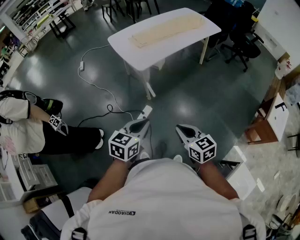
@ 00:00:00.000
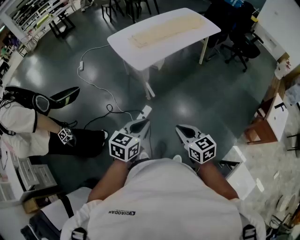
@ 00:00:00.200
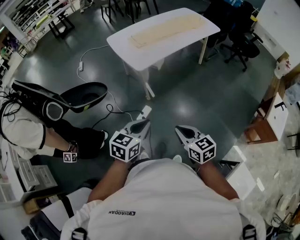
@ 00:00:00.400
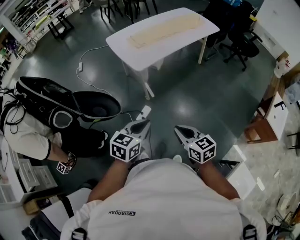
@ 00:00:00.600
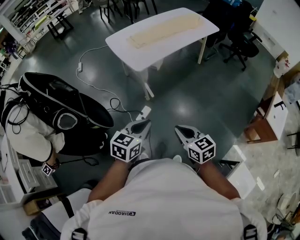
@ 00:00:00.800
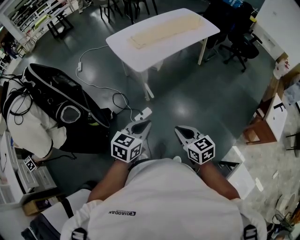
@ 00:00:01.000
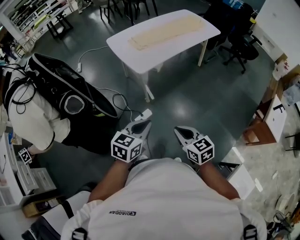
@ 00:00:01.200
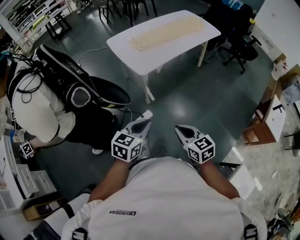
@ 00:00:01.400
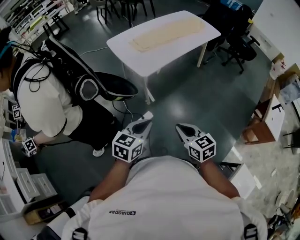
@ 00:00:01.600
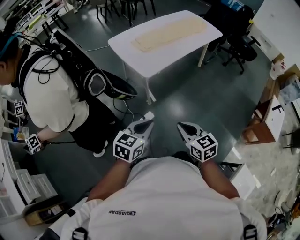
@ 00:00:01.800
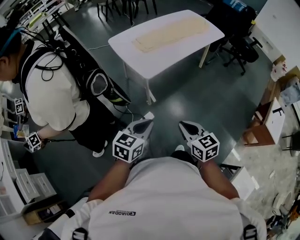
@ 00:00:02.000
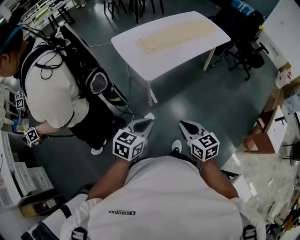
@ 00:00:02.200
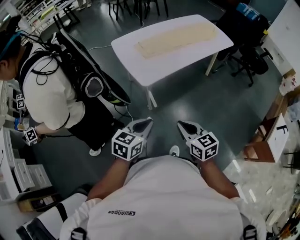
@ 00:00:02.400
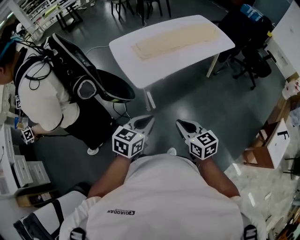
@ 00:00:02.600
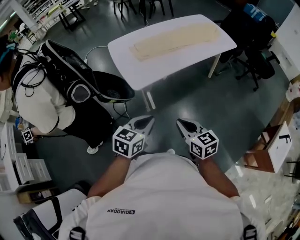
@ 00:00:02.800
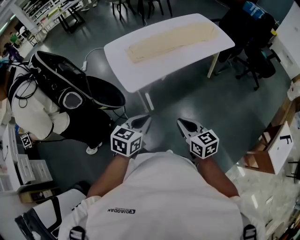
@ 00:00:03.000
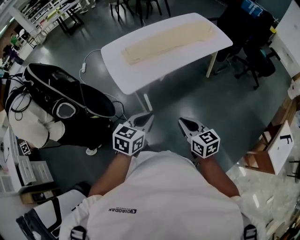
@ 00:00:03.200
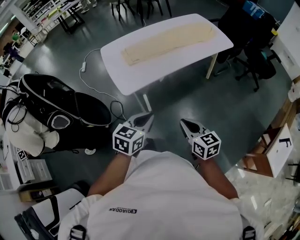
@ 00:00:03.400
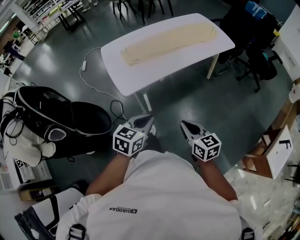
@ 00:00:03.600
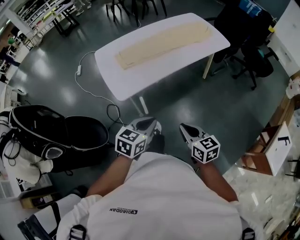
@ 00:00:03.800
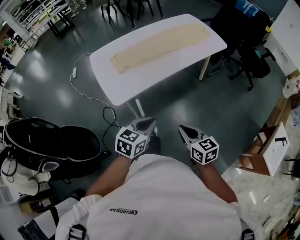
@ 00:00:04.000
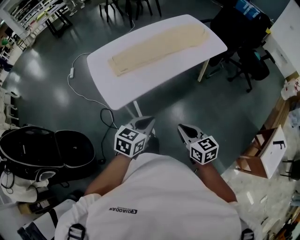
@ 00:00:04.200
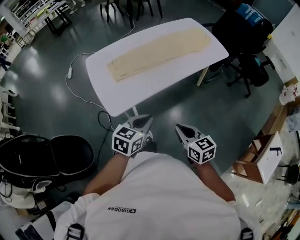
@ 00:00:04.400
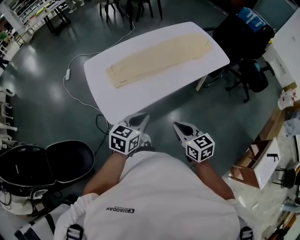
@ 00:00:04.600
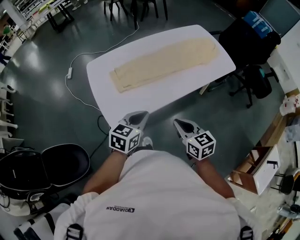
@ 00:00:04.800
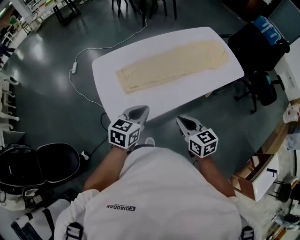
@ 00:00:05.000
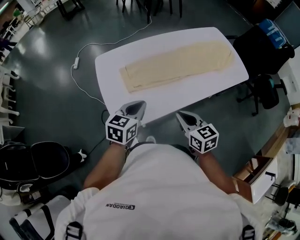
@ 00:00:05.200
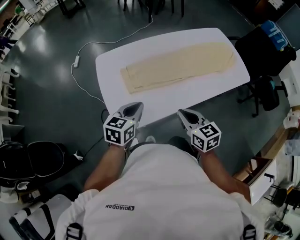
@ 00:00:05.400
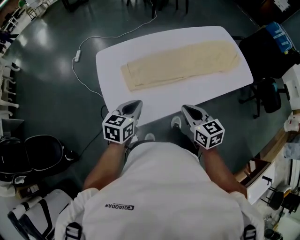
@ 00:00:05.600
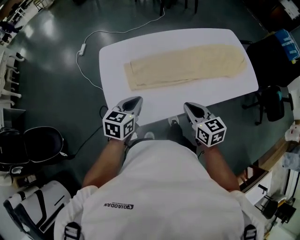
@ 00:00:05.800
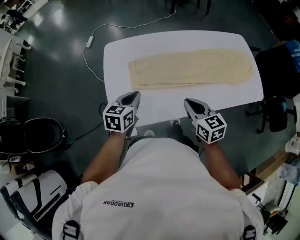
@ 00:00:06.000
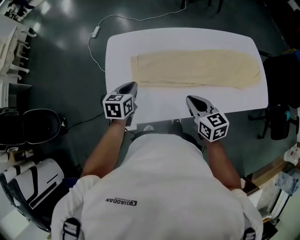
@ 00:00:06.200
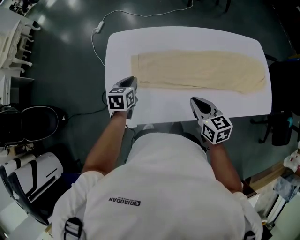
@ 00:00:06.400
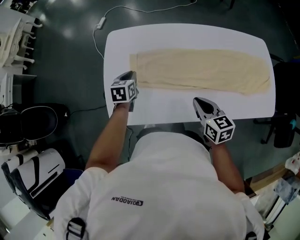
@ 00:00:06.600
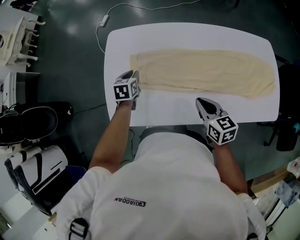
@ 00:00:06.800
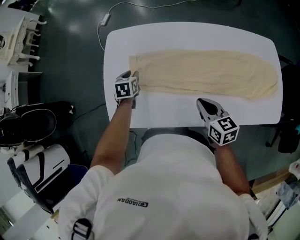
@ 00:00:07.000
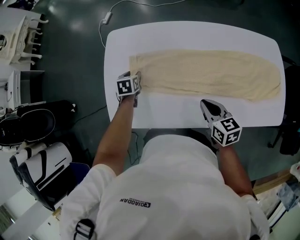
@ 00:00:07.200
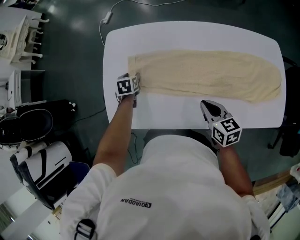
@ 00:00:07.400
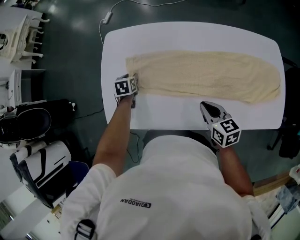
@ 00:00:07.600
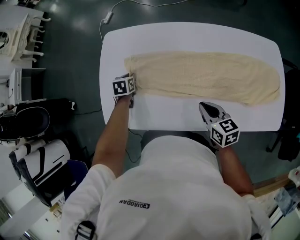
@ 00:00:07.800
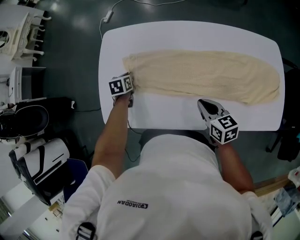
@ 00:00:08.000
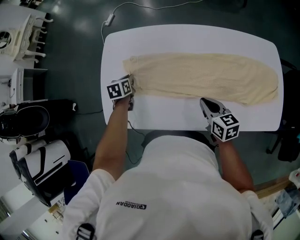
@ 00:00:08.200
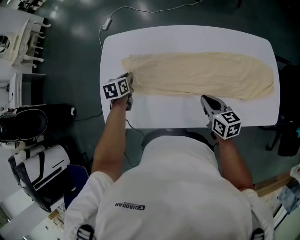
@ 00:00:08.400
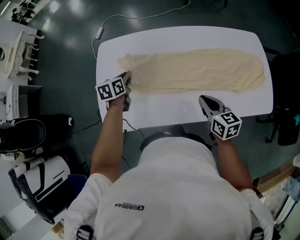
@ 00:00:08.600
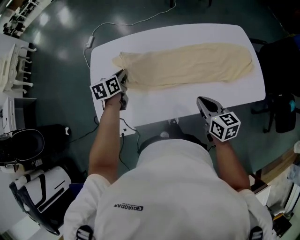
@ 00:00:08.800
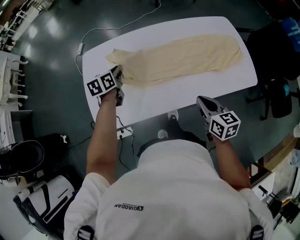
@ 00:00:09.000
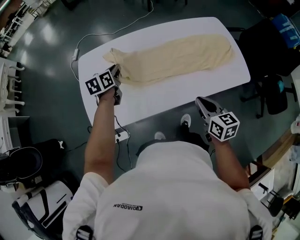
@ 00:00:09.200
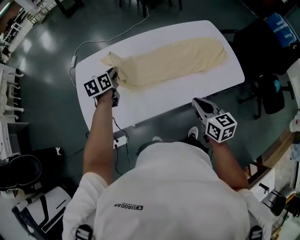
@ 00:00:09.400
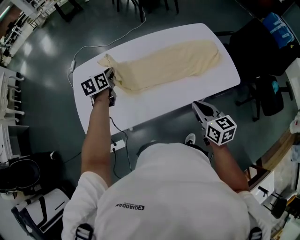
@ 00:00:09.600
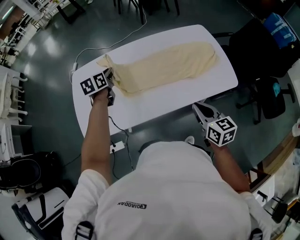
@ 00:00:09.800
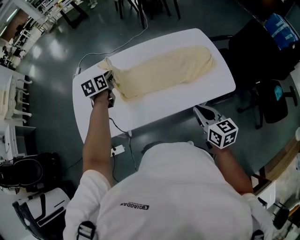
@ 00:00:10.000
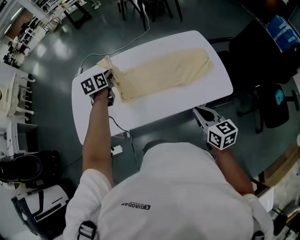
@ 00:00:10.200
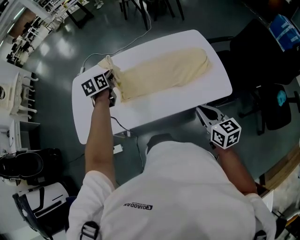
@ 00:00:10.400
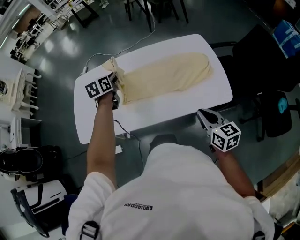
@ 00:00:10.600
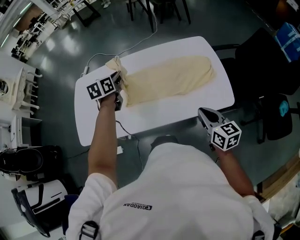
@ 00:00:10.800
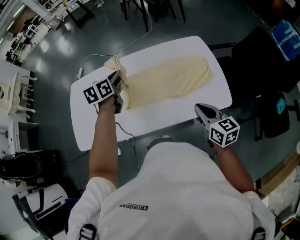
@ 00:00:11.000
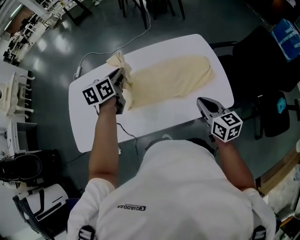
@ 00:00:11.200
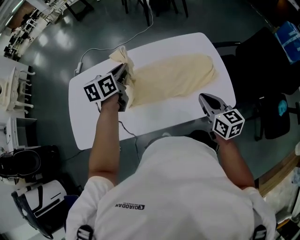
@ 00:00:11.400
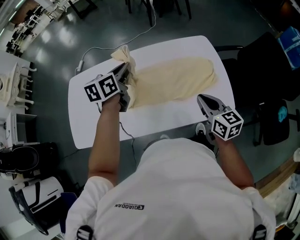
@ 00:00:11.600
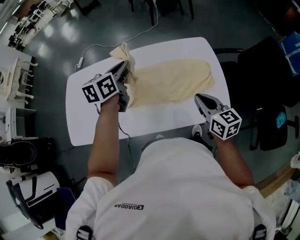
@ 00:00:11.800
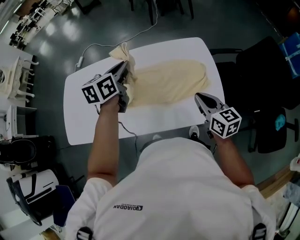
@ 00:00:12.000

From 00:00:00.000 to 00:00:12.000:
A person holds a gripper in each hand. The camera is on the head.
From 00:00:00.000 to 00:00:01.600: The right gripper goes some 10 cm to the left and forward. Meanwhile the left gripper goes roughly 10 cm forward and to the left.
From 00:00:01.600 to 00:00:03.000: Both grippers move forward and to the right, approximately 25 cm.
From 00:00:03.000 to 00:00:04.400: The two grippers go about 20 cm forward and to the right.
From 00:00:04.400 to 00:00:06.000: The left gripper travels forward and to the left by some 30 cm, and rotates approximately 30 degrees, while the right gripper moves forward, roughly 35 cm.
From 00:00:06.000 to 00:00:07.600: The left gripper travels downward by approximately 20 cm, rotates approximately 40 degrees, and opens up. The right gripper ends up roughly 20 cm from where it was.
From 00:00:07.600 to 00:00:09.000: The right gripper shifts by roughly 15 cm, and turns by roughly 20 degrees. Meanwhile the left gripper travels upward by roughly 20 cm, swivels roughly 30 degrees, and closes its fingers.
From 00:00:09.000 to 00:00:10.400: The two grippers go some 25 cm to the right.
From 00:00:10.400 to 00:00:12.000: The left gripper moves to the right and upward, roughly 20 cm; the right gripper moves forward and to the right, about 20 cm.

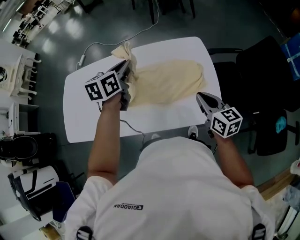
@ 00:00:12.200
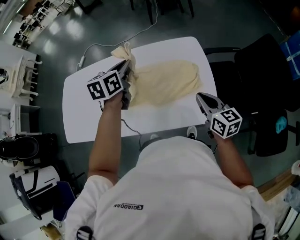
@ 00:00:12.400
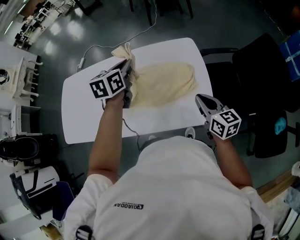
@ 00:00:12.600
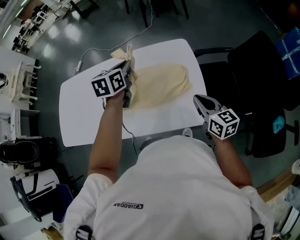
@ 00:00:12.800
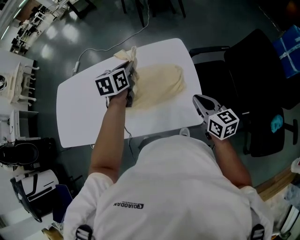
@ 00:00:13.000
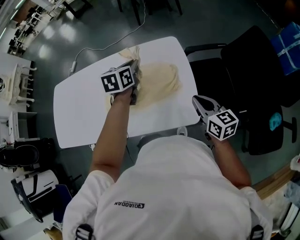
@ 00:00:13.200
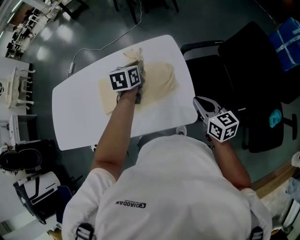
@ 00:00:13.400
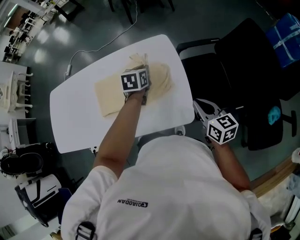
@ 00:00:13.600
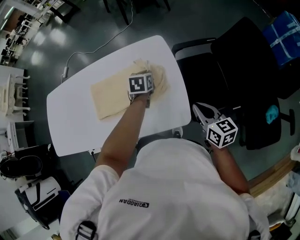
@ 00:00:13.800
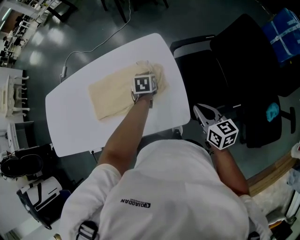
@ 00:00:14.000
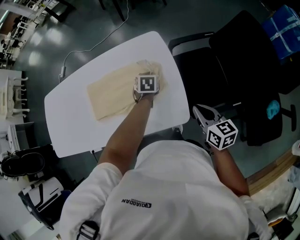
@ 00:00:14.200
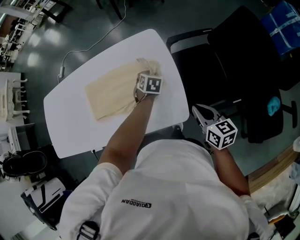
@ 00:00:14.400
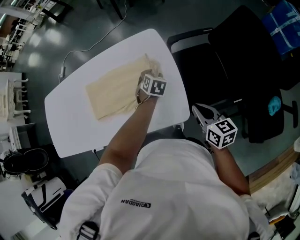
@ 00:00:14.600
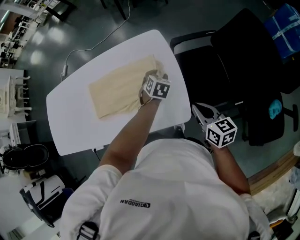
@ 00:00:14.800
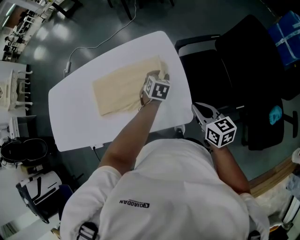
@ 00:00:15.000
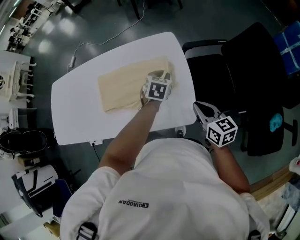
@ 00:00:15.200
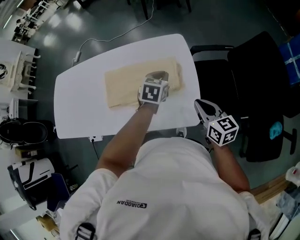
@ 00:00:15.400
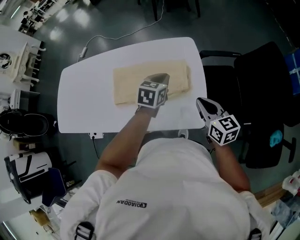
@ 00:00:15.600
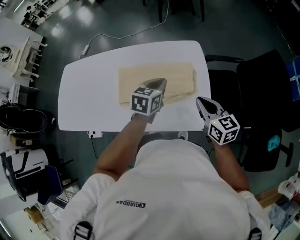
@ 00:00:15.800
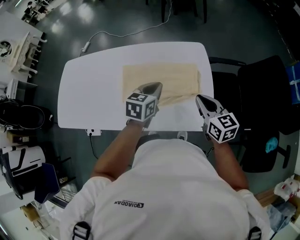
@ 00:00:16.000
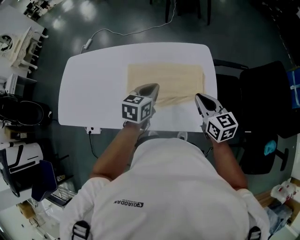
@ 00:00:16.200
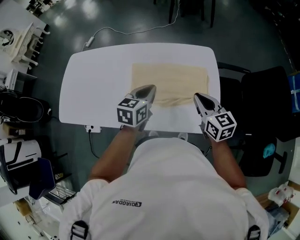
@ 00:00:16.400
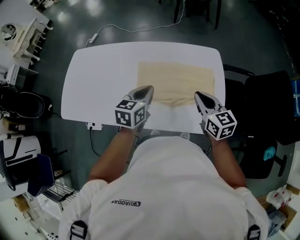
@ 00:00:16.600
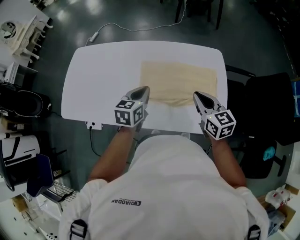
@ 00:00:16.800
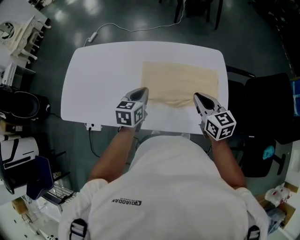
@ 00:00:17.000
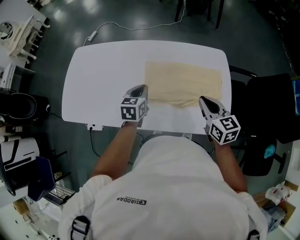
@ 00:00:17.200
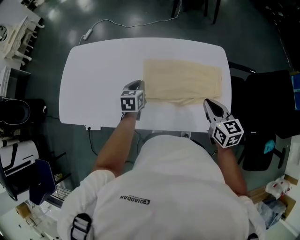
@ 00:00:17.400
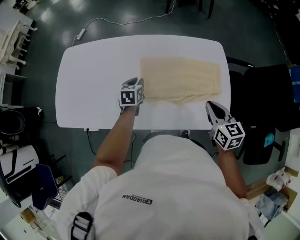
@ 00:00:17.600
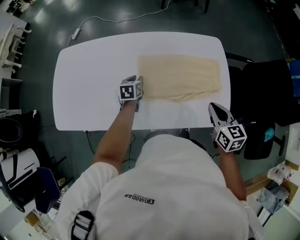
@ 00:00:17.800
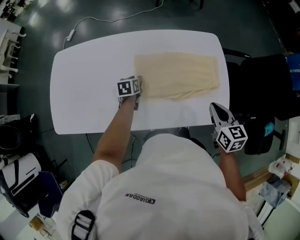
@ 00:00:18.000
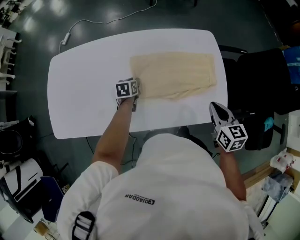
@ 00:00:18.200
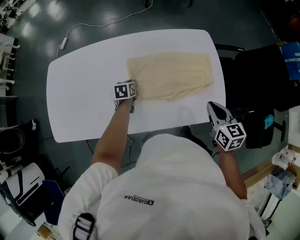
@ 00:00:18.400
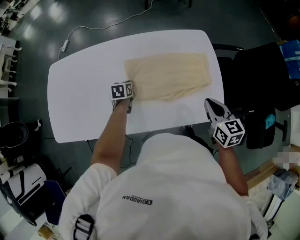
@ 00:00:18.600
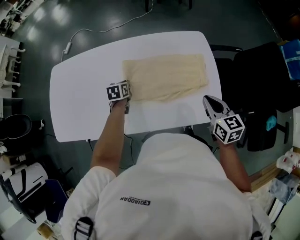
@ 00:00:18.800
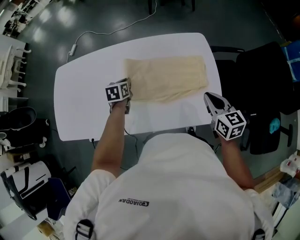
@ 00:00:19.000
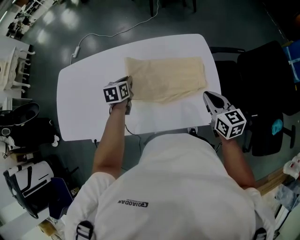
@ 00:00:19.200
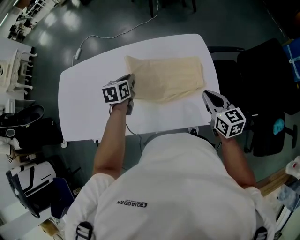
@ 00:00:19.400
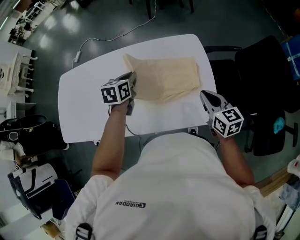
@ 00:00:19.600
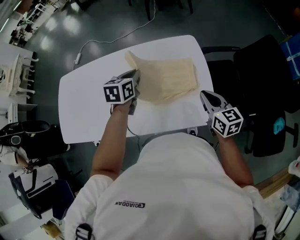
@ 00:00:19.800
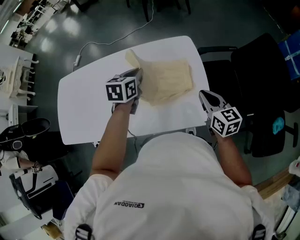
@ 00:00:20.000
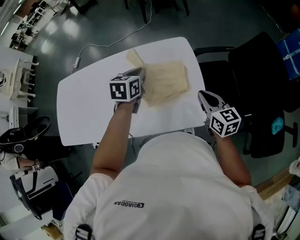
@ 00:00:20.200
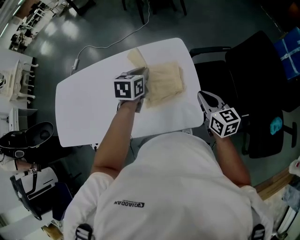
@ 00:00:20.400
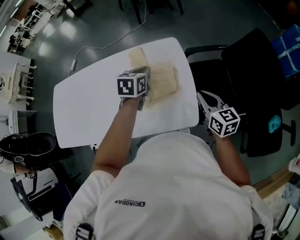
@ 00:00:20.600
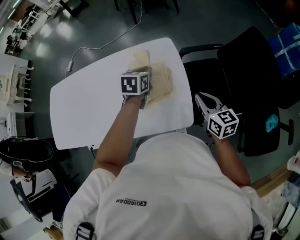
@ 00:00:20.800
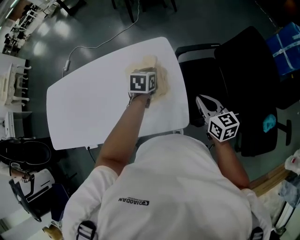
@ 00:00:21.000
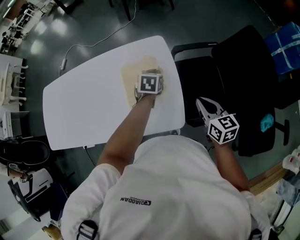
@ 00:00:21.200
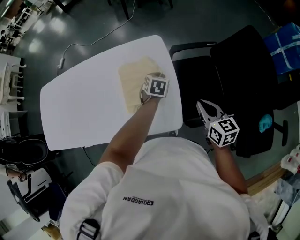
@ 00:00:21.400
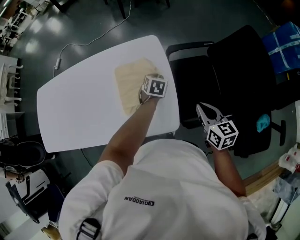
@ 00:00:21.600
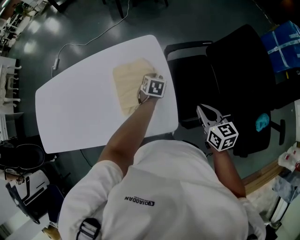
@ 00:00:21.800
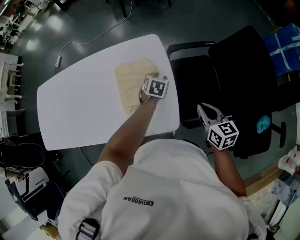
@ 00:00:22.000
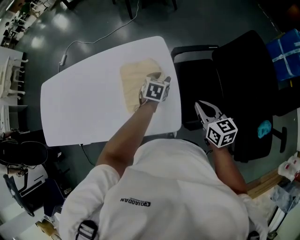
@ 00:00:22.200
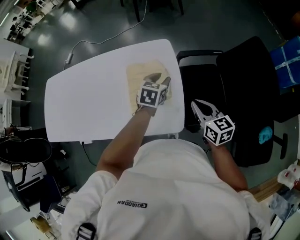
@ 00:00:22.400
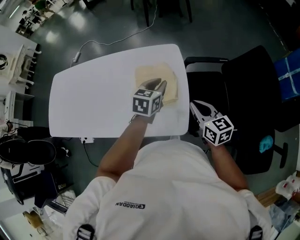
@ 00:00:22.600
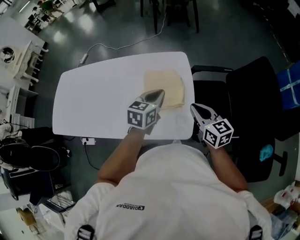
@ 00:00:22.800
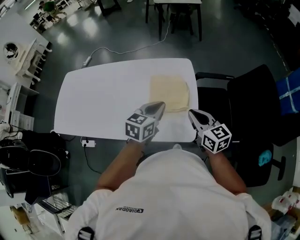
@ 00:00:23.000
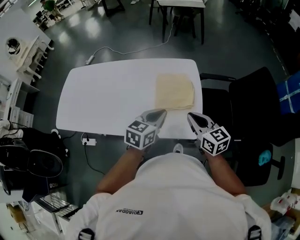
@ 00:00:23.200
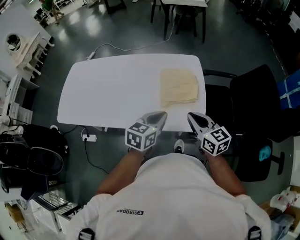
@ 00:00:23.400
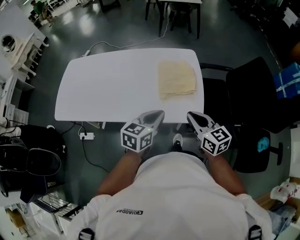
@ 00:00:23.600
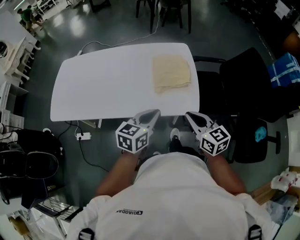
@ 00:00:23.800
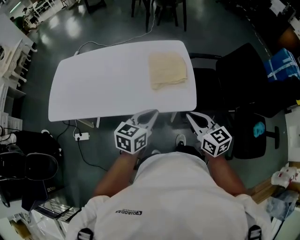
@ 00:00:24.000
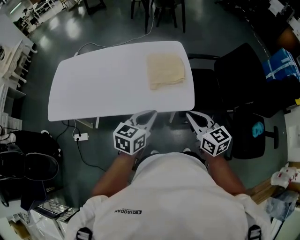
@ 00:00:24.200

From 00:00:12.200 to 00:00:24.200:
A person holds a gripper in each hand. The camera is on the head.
From 00:00:12.200 to 00:00:13.800: The left gripper shifts about 35 cm to the right and downward, and rotates approximately 20 degrees; the right gripper travels to the right by about 20 cm.
From 00:00:13.800 to 00:00:15.200: The left gripper travels downward and back again, roughly 10 cm each way, and opens, then closes once more.
From 00:00:15.200 to 00:00:16.600: Both grippers travel together to the left, roughly 25 cm. The left gripper changes its angle by some 30 degrees.
From 00:00:16.600 to 00:00:18.200: The right gripper shifts by approximately 5 cm, and swivels some 20 degrees. The left gripper is displaced downward, to the left and forward by approximately 30 cm, rotates about 20 degrees, and opens up.
From 00:00:18.200 to 00:00:19.800: The right gripper moves to the right, some 15 cm. Meanwhile the left gripper travels upward and to the right by approximately 30 cm, changes its angle by some 20 degrees, and closes up.
From 00:00:19.800 to 00:00:21.200: The left gripper goes about 30 cm to the right and downward; the right gripper shifts some 15 cm to the right.
From 00:00:21.200 to 00:00:22.600: The right gripper is displaced to the left by roughly 5 cm. The left gripper goes roughly 10 cm upward and backward, and opens, then closes again.
From 00:00:22.600 to 00:00:24.200: Both grippers travel together backward and to the left, about 30 cm.
